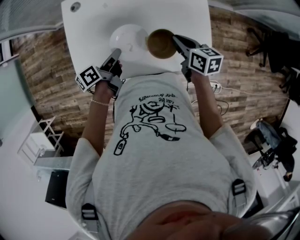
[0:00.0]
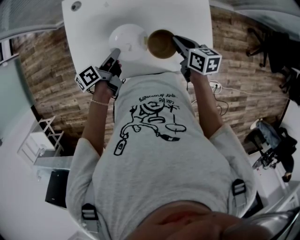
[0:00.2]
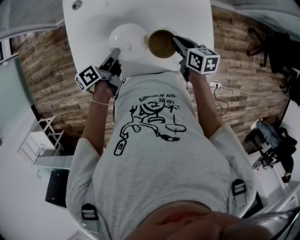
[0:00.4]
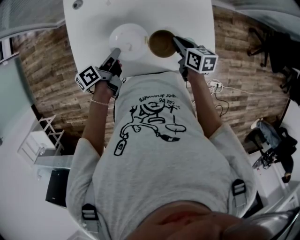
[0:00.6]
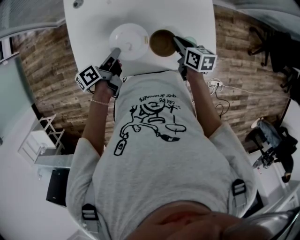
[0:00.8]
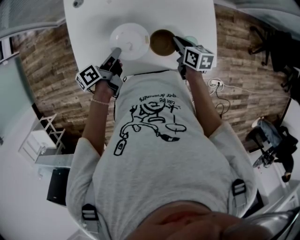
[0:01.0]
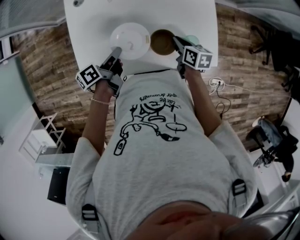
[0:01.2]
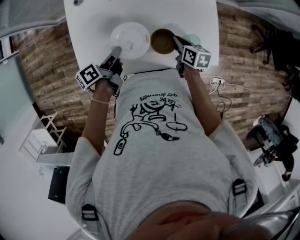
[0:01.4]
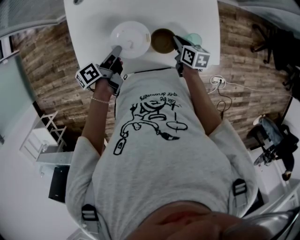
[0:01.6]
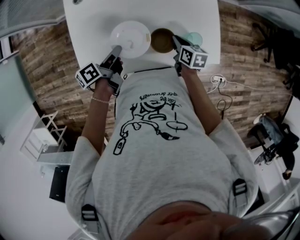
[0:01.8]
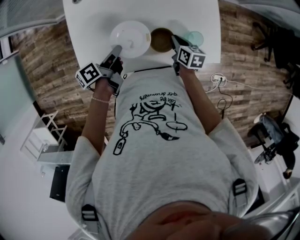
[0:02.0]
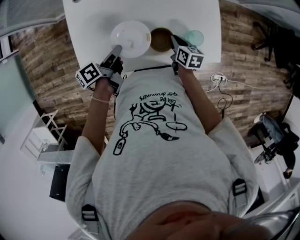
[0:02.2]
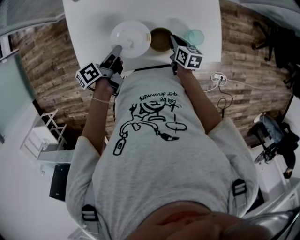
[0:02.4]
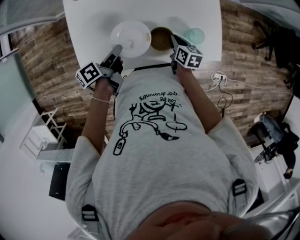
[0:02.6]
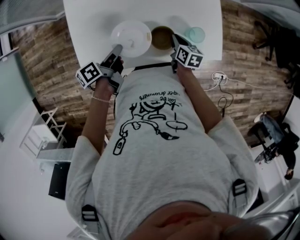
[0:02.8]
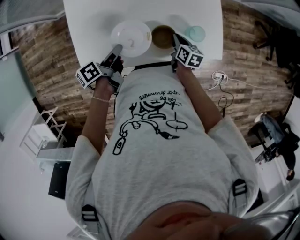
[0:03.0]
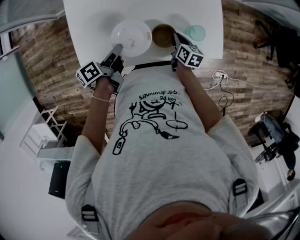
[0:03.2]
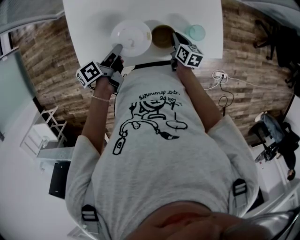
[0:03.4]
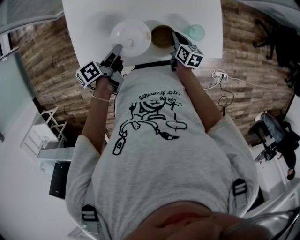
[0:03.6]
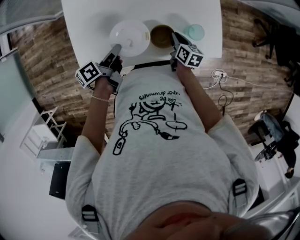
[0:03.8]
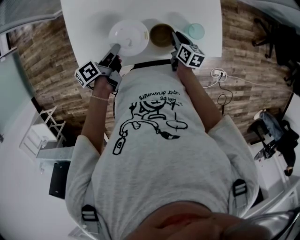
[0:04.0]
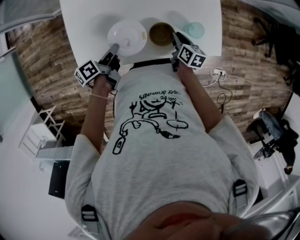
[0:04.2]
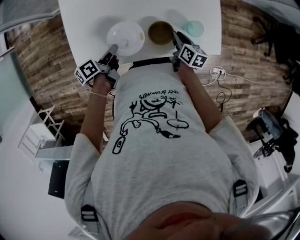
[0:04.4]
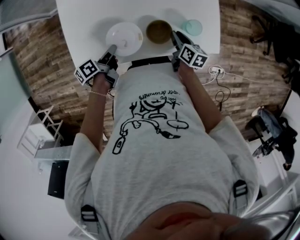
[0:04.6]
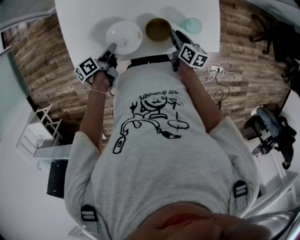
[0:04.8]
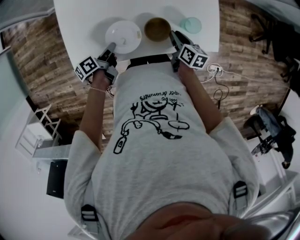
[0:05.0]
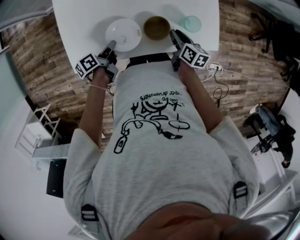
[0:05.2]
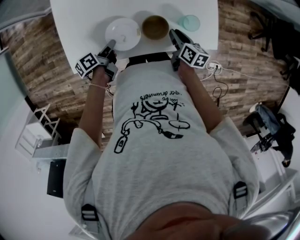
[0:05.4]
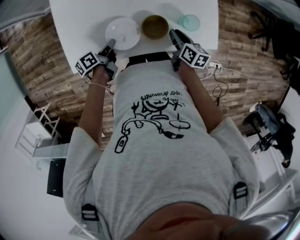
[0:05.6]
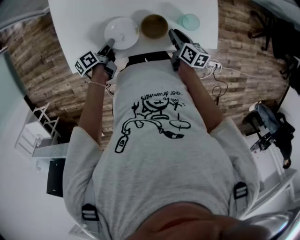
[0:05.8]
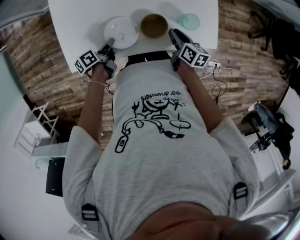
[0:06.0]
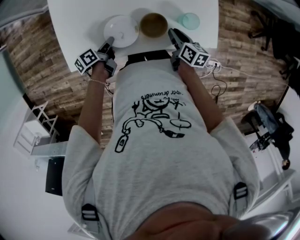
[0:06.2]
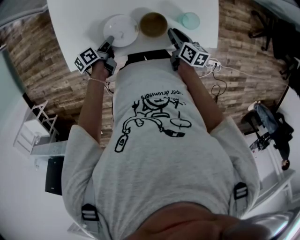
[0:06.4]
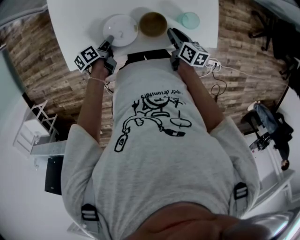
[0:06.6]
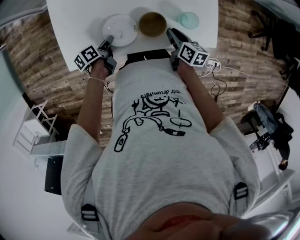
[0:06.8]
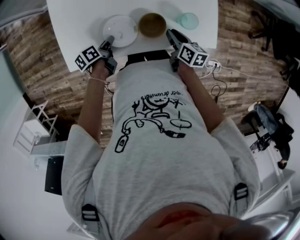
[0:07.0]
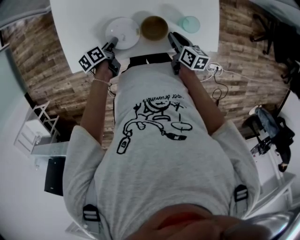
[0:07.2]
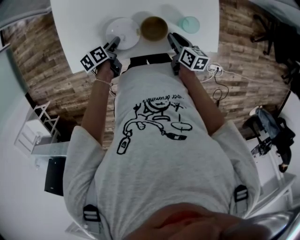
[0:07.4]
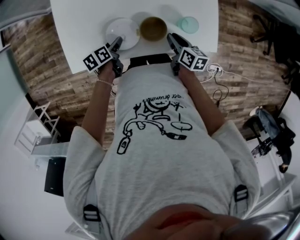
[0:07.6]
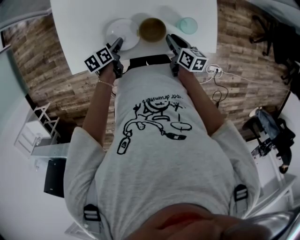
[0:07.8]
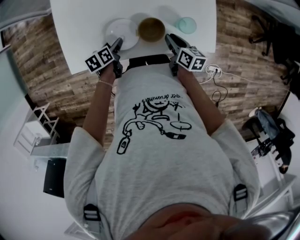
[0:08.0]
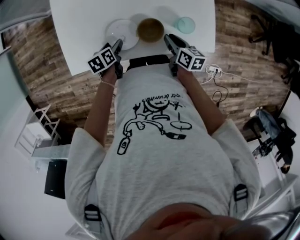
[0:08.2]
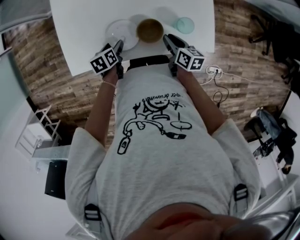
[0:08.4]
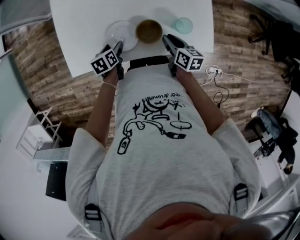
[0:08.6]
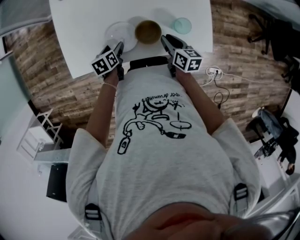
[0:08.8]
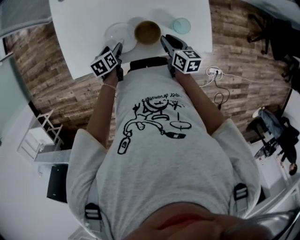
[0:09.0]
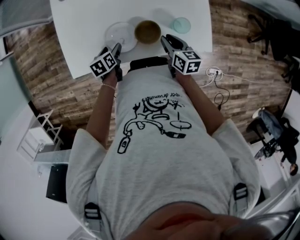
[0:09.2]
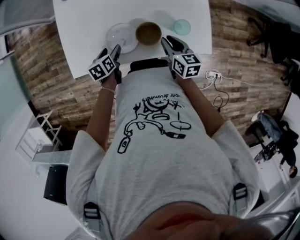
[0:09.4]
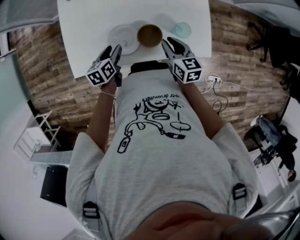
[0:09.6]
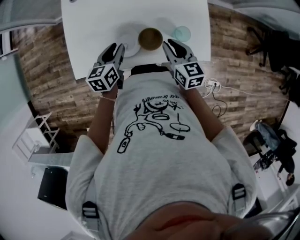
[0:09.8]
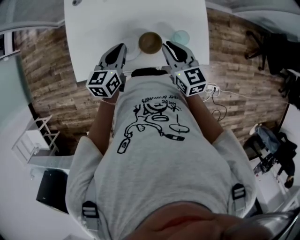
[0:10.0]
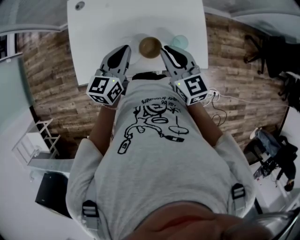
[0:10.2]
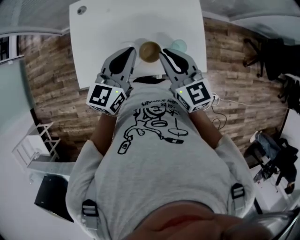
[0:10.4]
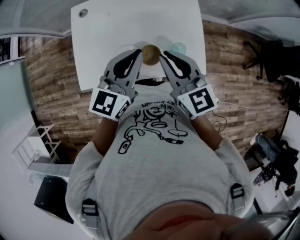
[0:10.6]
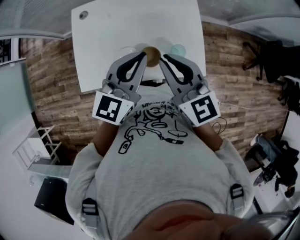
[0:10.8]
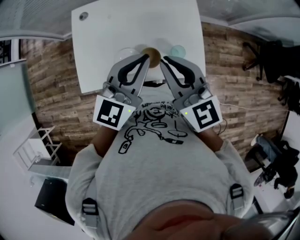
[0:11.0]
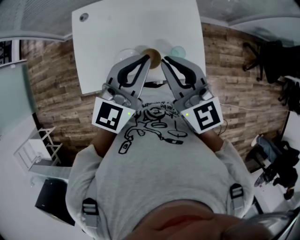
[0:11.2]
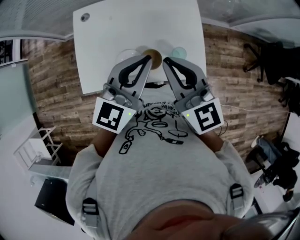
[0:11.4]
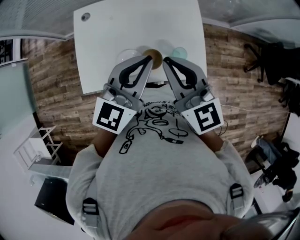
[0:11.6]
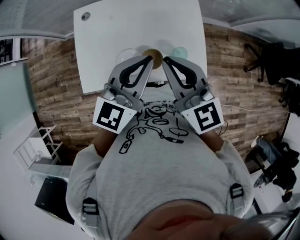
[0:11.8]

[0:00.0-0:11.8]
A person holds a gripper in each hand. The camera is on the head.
0:00.0 to 0:01.4: The right gripper moves downward, about 10 cm.
0:01.4 to 0:03.0: The right gripper shifts approximately 5 cm downward.
0:08.8 to 0:10.4: The right gripper moves upward, approximately 25 cm, and turns by roughly 40 degrees.
0:10.4 to 0:11.8: The right gripper goes approximately 10 cm upward.

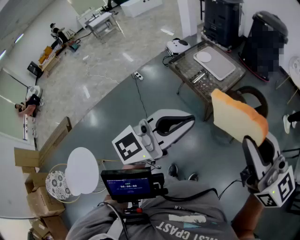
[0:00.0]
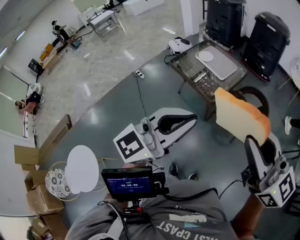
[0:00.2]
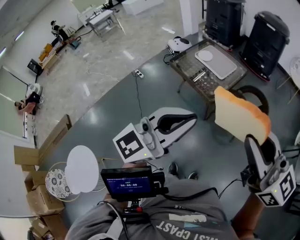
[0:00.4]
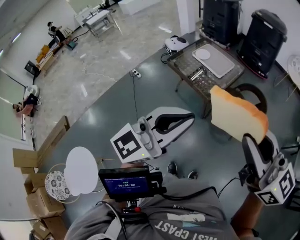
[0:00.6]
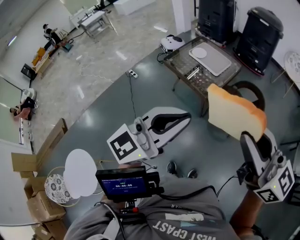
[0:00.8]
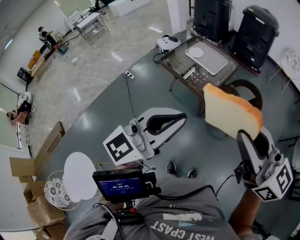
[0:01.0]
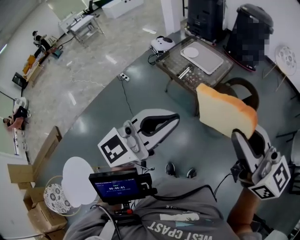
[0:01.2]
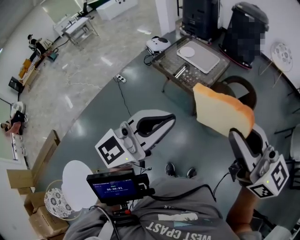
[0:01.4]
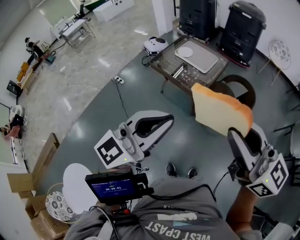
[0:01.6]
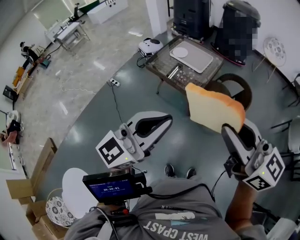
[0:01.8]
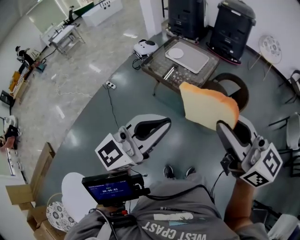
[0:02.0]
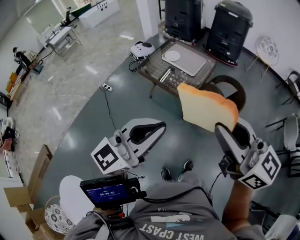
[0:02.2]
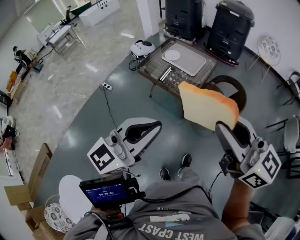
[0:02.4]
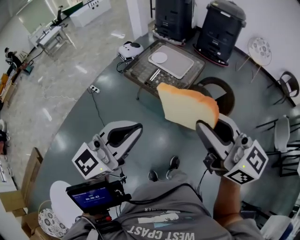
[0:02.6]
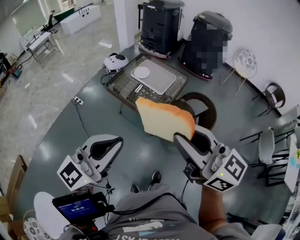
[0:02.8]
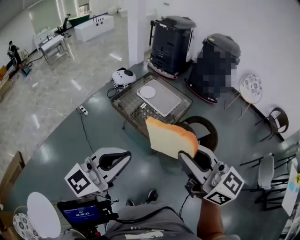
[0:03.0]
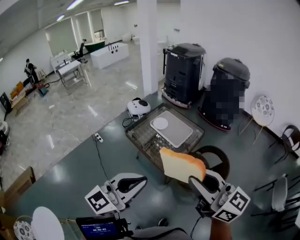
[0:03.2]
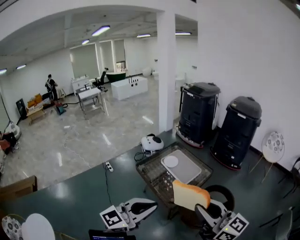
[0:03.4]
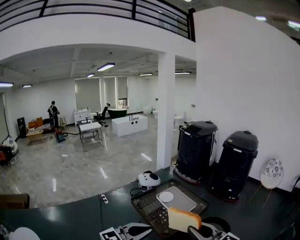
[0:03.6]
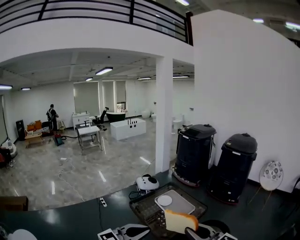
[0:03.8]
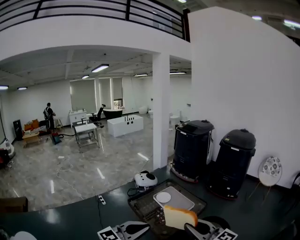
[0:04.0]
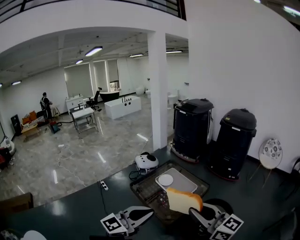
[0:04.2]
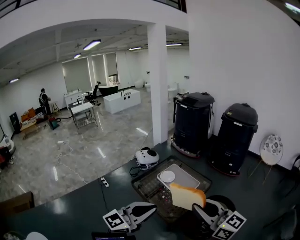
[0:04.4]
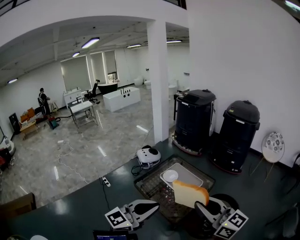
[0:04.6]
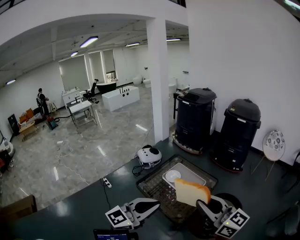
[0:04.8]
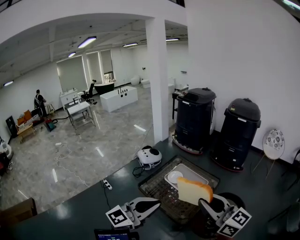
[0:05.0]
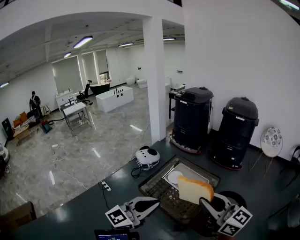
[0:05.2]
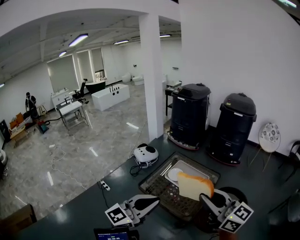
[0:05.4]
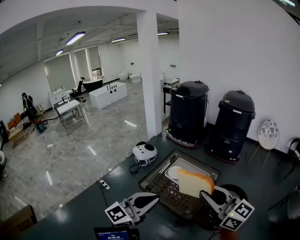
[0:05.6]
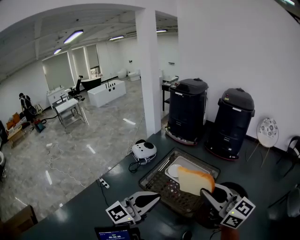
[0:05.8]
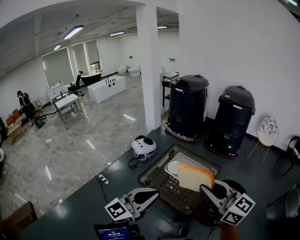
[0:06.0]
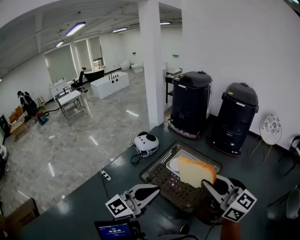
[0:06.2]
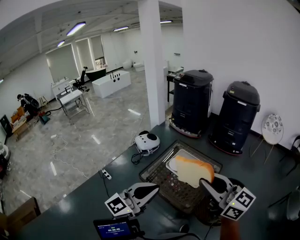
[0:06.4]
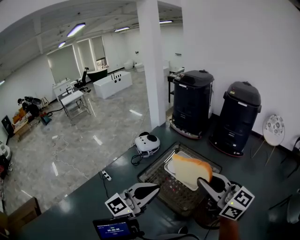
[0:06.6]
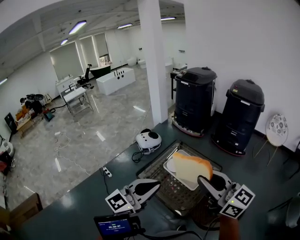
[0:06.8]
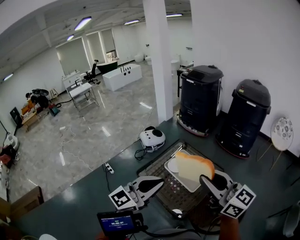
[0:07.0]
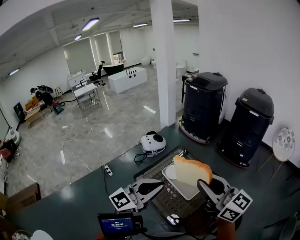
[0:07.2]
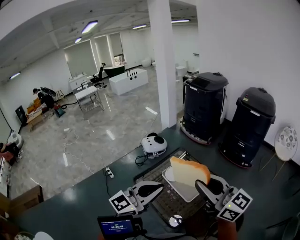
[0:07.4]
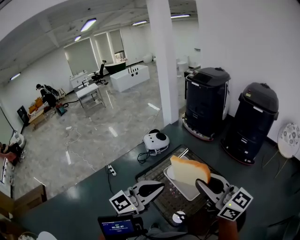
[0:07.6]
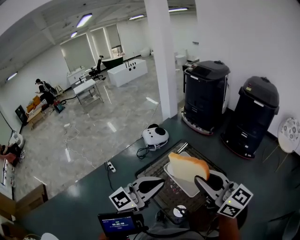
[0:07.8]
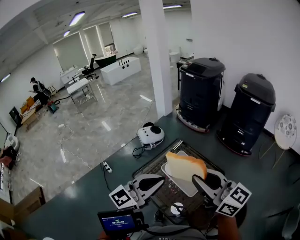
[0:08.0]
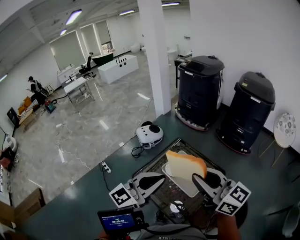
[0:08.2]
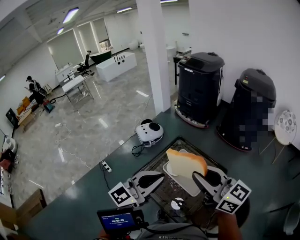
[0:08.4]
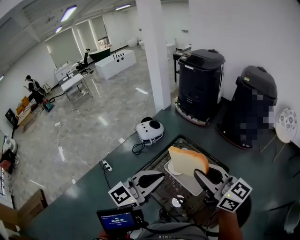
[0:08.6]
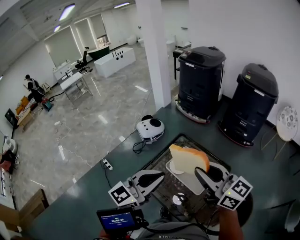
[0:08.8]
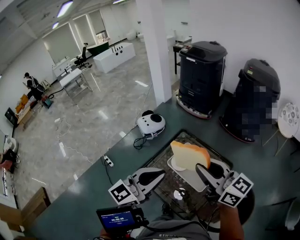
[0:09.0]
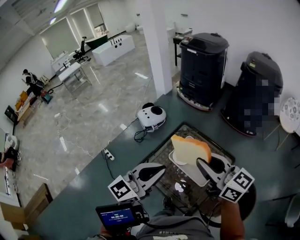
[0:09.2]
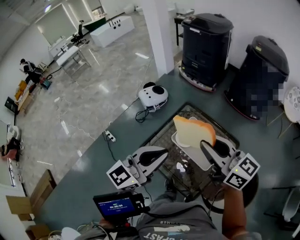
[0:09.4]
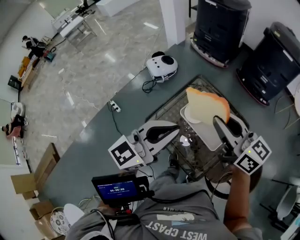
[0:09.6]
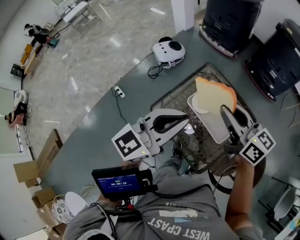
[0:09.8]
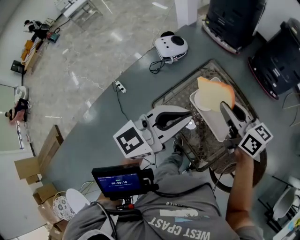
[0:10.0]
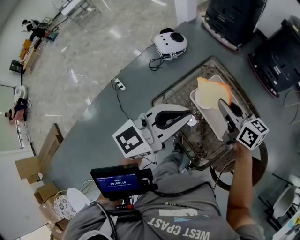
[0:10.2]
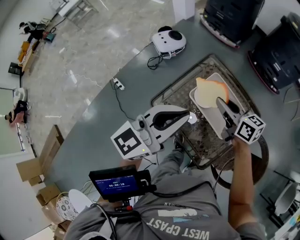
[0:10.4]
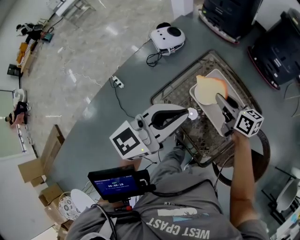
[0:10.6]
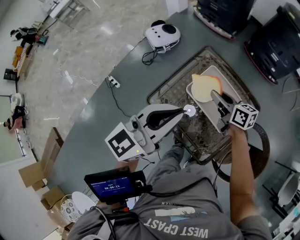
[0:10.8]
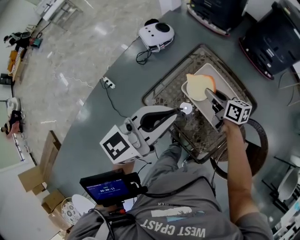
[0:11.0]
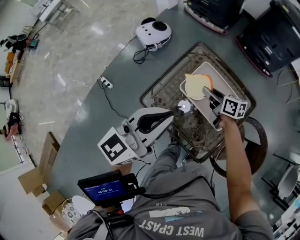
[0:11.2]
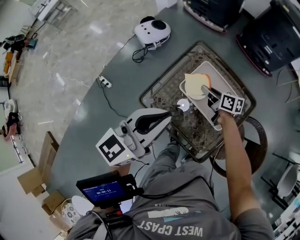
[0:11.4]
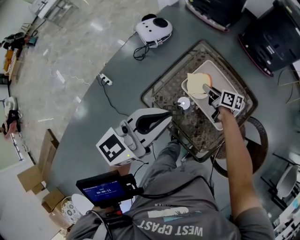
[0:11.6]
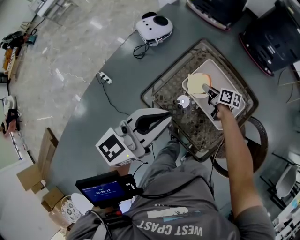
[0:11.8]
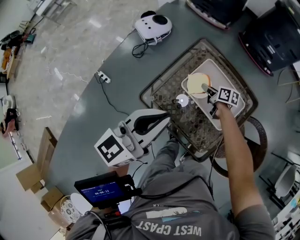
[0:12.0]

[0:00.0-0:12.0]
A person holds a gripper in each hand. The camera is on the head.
0:00.0 to 0:01.6: The grippers both shift to the left by about 5 cm.
0:01.6 to 0:03.0: The grippers both shift forward by about 15 cm.
0:03.0 to 0:04.4: Both grippers move forward, about 15 cm.
0:04.4 to 0:06.0: The two grippers go approximately 20 cm to the left and forward.
0:06.0 to 0:07.6: The right gripper heads forward and to the right, covering some 20 cm; the left gripper travels to the right and forward by some 20 cm.
0:07.6 to 0:09.0: The left gripper travels forward and to the left by approximately 15 cm; the right gripper travels forward, to the left and downward by approximately 15 cm.
0:09.0 to 0:10.4: The right gripper travels downward and forward by roughly 30 cm, and swivels about 30 degrees; the left gripper heads downward and forward, covering some 10 cm.
0:10.4 to 0:12.0: The right gripper moves downward, about 25 cm, and rotates some 30 degrees; the left gripper moves downward, approximately 5 cm.
